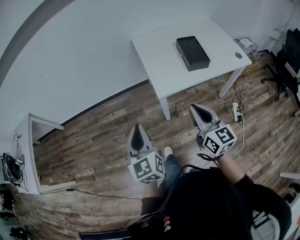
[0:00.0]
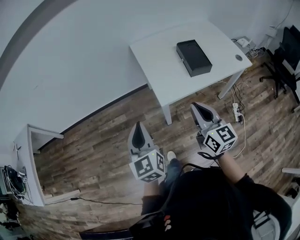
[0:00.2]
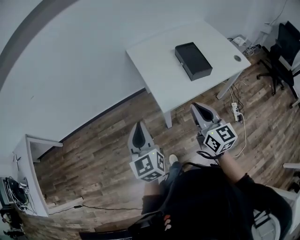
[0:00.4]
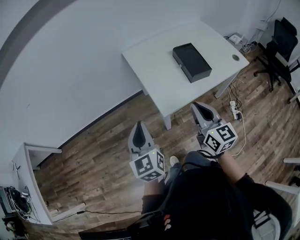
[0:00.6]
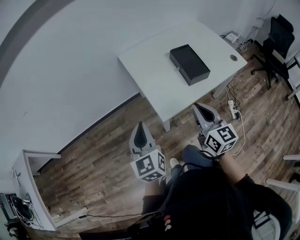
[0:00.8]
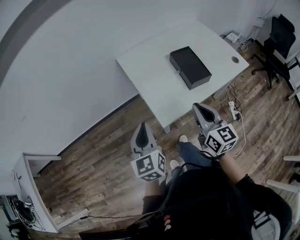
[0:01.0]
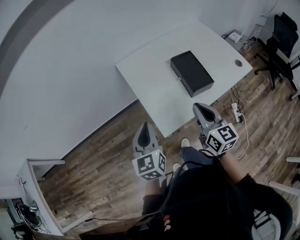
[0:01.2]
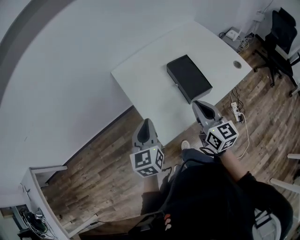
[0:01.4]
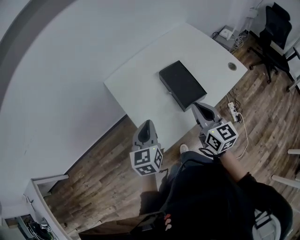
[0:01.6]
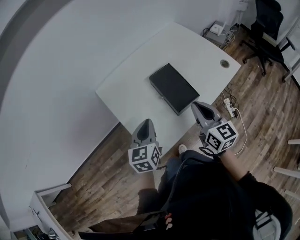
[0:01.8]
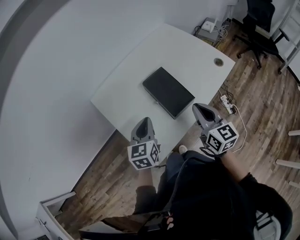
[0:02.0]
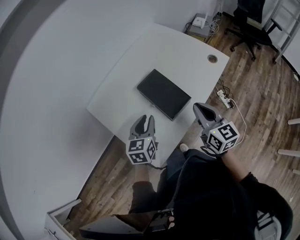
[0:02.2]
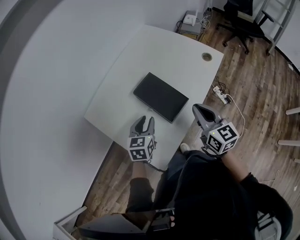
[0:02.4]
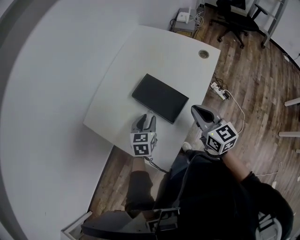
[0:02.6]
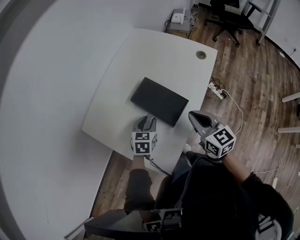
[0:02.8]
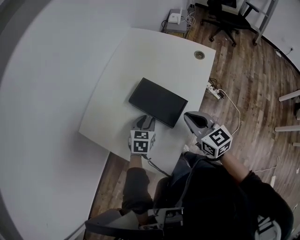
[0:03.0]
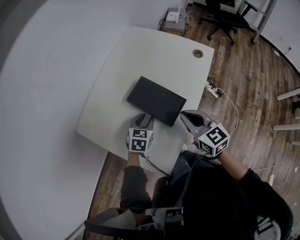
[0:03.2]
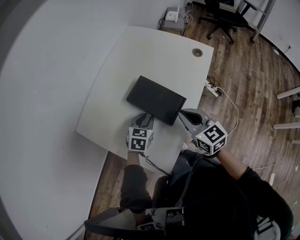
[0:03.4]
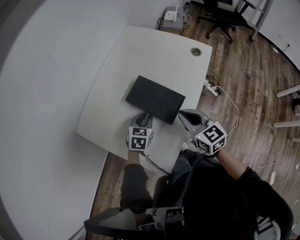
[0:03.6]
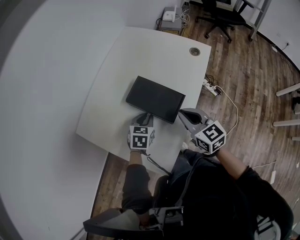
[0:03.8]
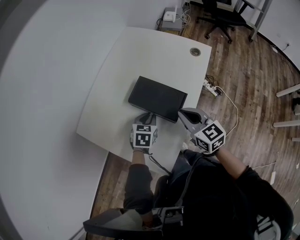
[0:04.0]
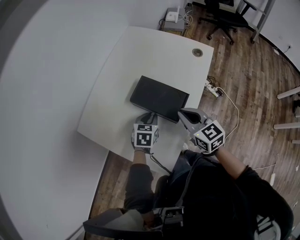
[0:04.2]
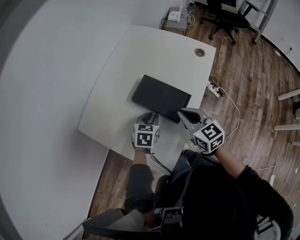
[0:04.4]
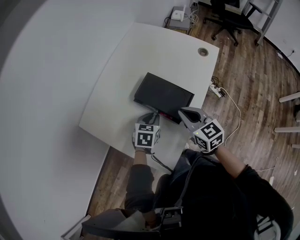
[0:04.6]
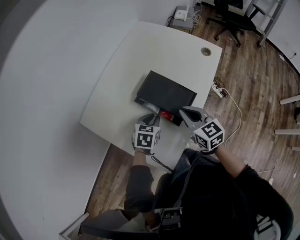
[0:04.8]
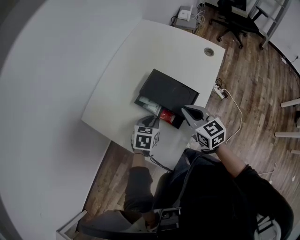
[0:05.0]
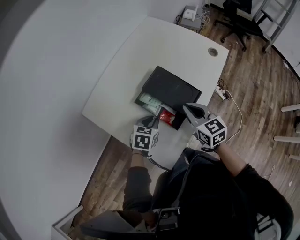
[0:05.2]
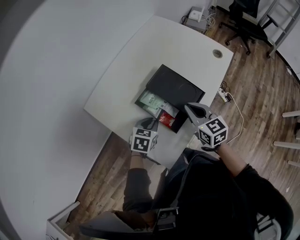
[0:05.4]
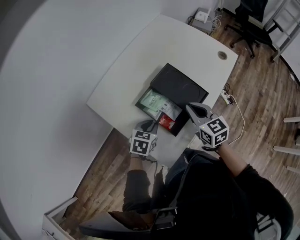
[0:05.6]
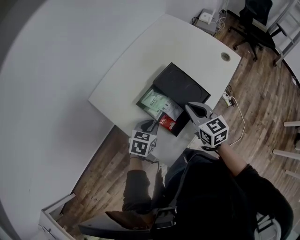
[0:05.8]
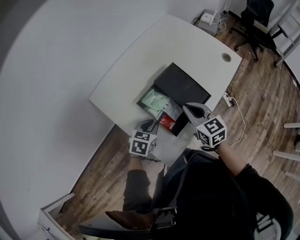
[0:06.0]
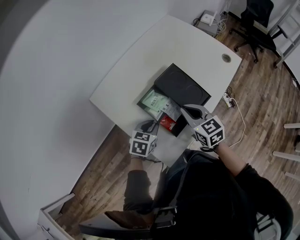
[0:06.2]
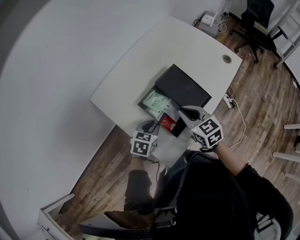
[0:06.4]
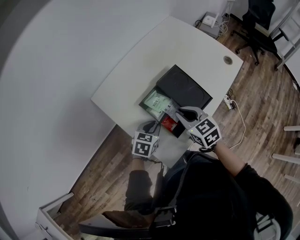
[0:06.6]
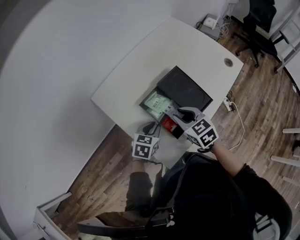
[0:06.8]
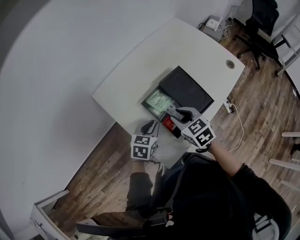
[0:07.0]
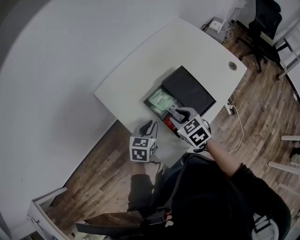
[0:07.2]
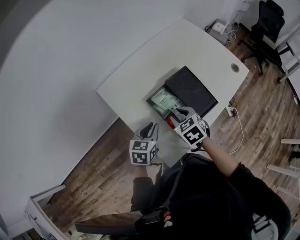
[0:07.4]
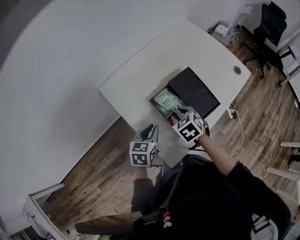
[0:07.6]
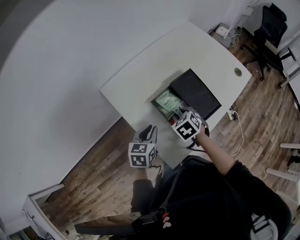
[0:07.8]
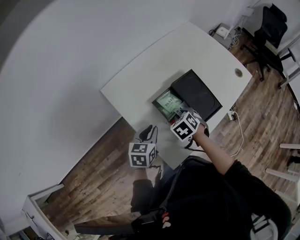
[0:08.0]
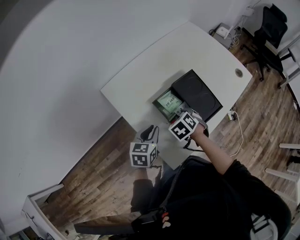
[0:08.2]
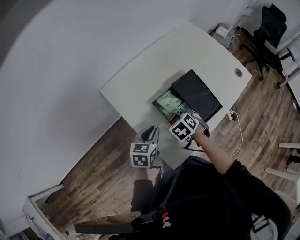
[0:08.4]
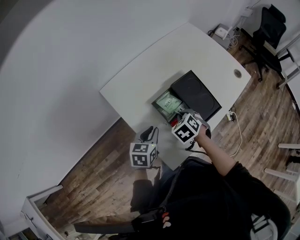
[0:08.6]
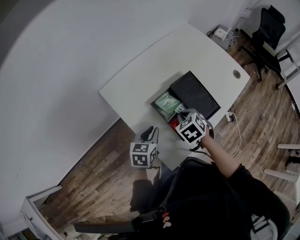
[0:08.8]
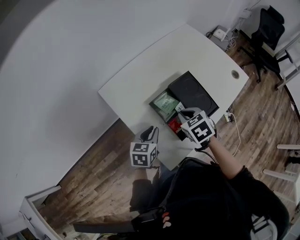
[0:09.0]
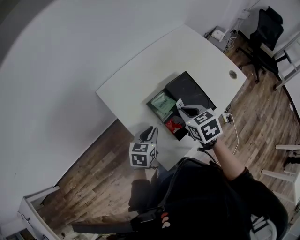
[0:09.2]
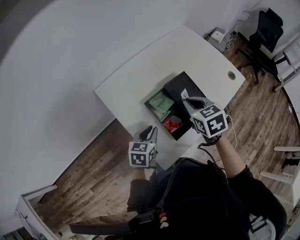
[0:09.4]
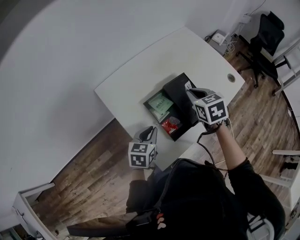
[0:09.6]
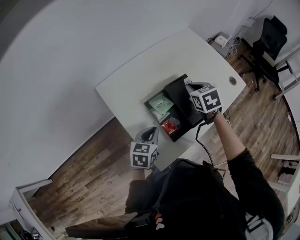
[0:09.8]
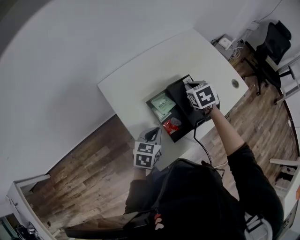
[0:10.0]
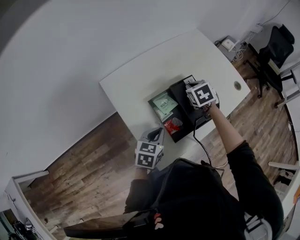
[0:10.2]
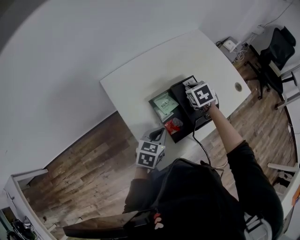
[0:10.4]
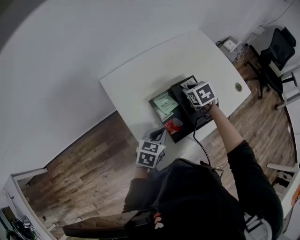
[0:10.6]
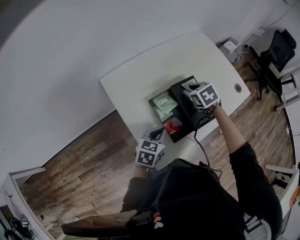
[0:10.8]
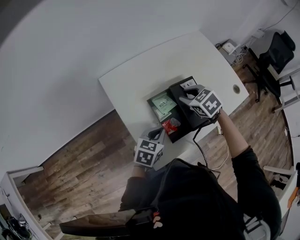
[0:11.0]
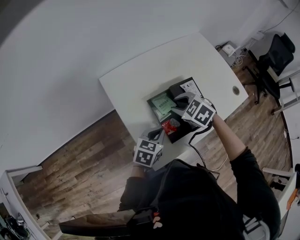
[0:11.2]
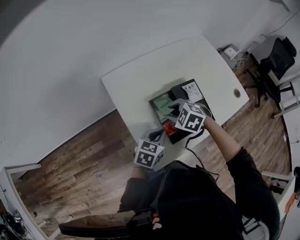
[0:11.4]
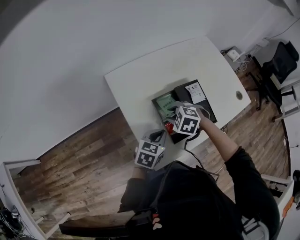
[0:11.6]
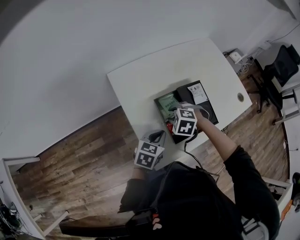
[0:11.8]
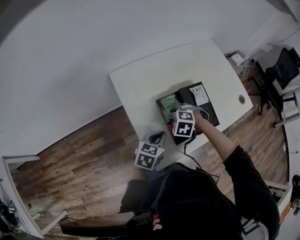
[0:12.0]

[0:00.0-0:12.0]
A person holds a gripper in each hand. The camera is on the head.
0:00.0 to 0:01.6: The right gripper ends up some 30 cm from where it was, while the left gripper changes place by roughly 40 cm, and rotates approximately 40 degrees.
0:01.6 to 0:03.0: The right gripper changes place by approximately 10 cm. Meanwhile the left gripper moves some 25 cm, changes its angle by roughly 50 degrees, and opens its fingers.
0:03.0 to 0:04.4: There are only small adjustments of the grippers.
0:04.4 to 0:06.0: The right gripper goes roughly 5 cm to the left. The left gripper moves backward and to the left, roughly 15 cm.
0:06.0 to 0:07.6: The left gripper travels to the left by about 5 cm, and turns by roughly 20 degrees, while the right gripper is displaced to the left and downward by roughly 10 cm, points its fingers roughly 30 degrees further downward, and opens up.
0:07.6 to 0:09.0: The right gripper ends up some 5 cm from where it was, and closes up.
0:09.0 to 0:10.4: The right gripper is displaced forward by roughly 15 cm. The left gripper heads to the right, covering roughly 5 cm.
0:10.4 to 0:12.0: The right gripper moves roughly 20 cm, twists about 60 degrees counterclockwise, seen from behind, and opens.

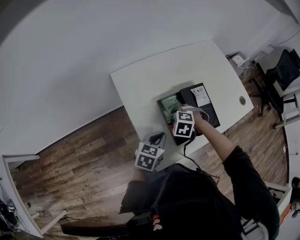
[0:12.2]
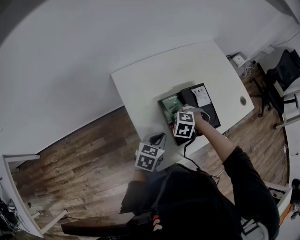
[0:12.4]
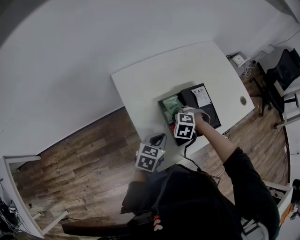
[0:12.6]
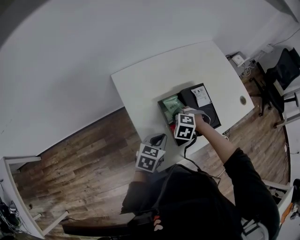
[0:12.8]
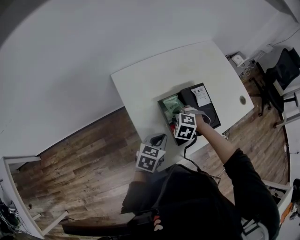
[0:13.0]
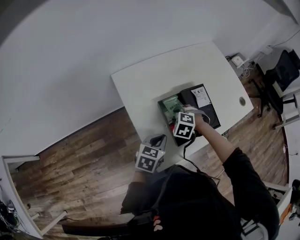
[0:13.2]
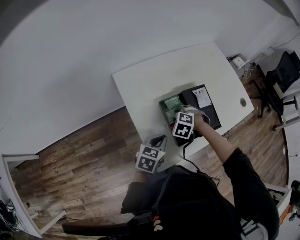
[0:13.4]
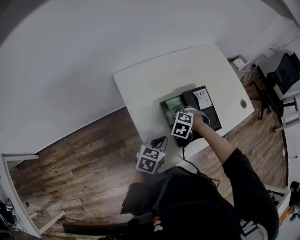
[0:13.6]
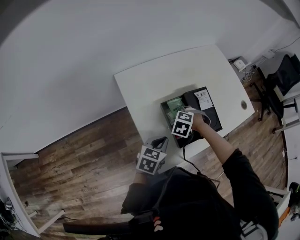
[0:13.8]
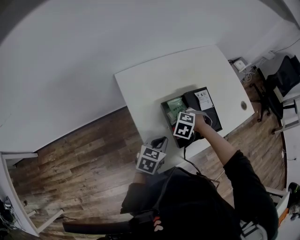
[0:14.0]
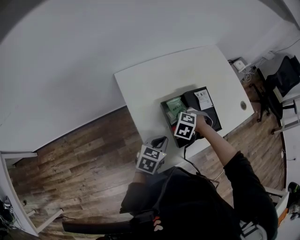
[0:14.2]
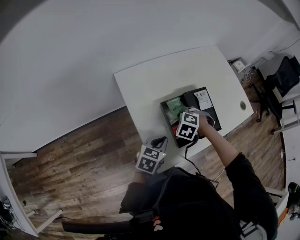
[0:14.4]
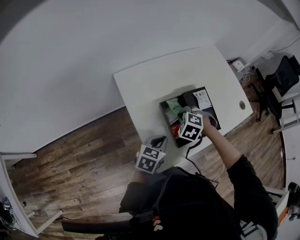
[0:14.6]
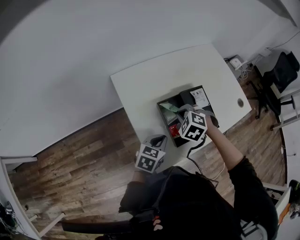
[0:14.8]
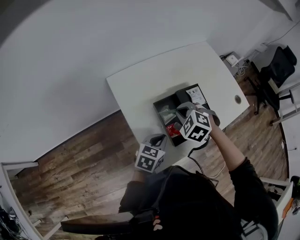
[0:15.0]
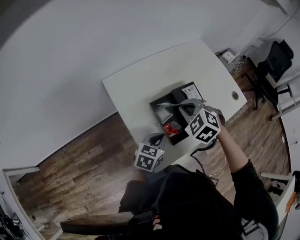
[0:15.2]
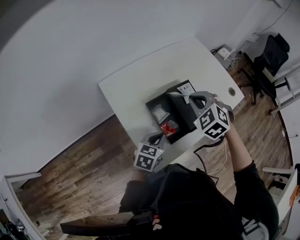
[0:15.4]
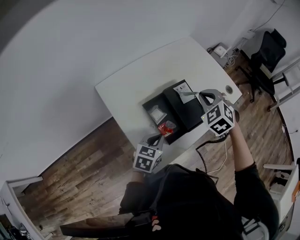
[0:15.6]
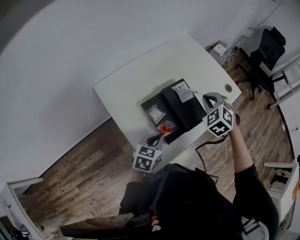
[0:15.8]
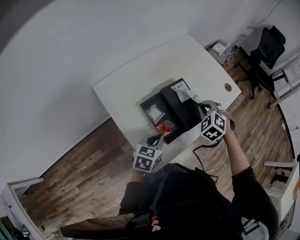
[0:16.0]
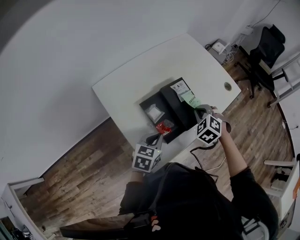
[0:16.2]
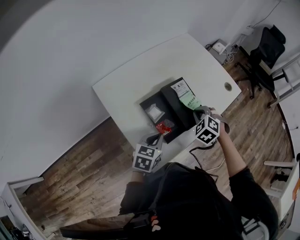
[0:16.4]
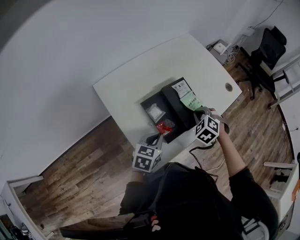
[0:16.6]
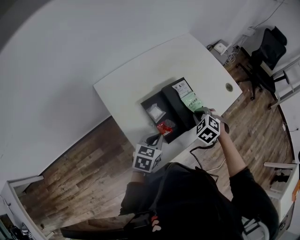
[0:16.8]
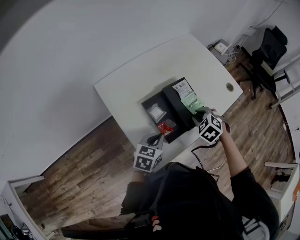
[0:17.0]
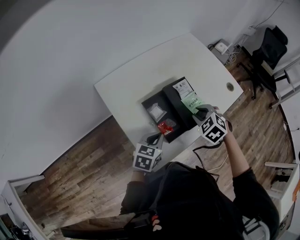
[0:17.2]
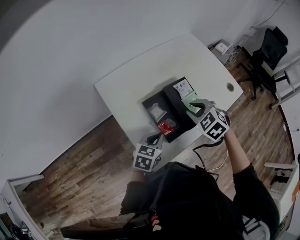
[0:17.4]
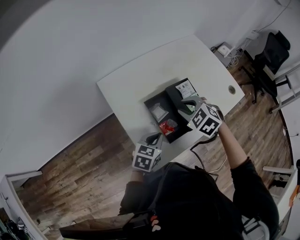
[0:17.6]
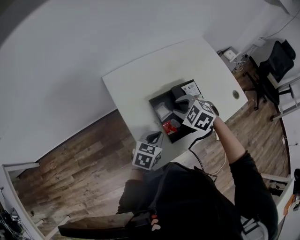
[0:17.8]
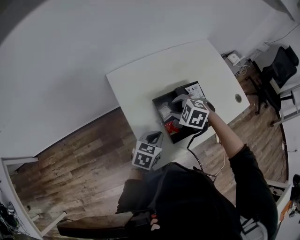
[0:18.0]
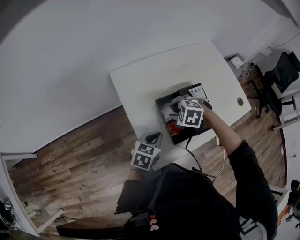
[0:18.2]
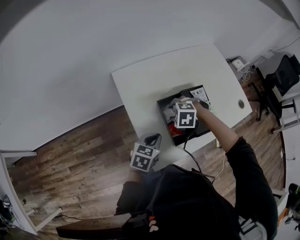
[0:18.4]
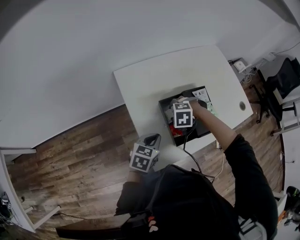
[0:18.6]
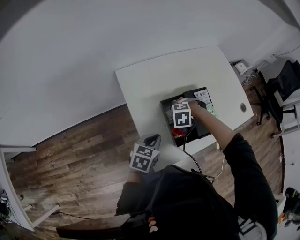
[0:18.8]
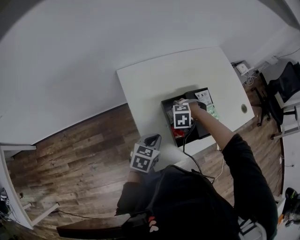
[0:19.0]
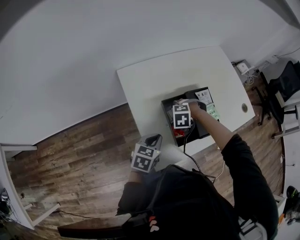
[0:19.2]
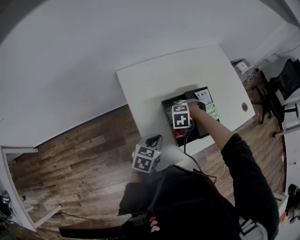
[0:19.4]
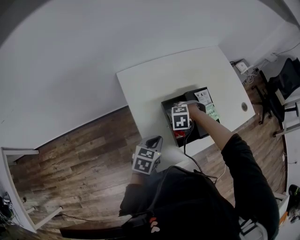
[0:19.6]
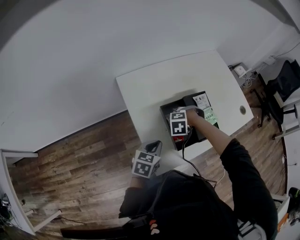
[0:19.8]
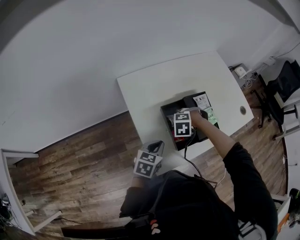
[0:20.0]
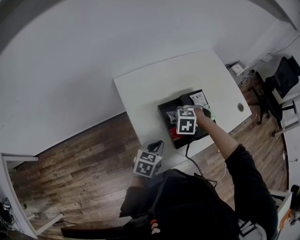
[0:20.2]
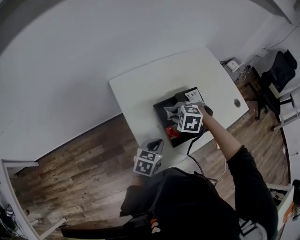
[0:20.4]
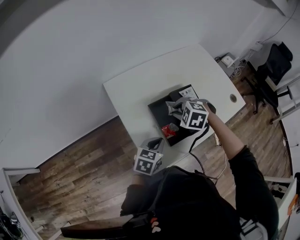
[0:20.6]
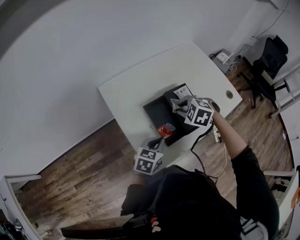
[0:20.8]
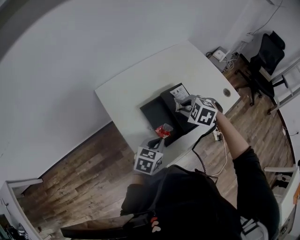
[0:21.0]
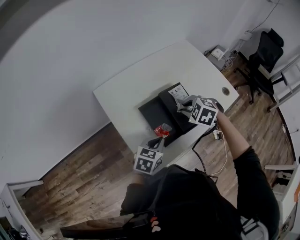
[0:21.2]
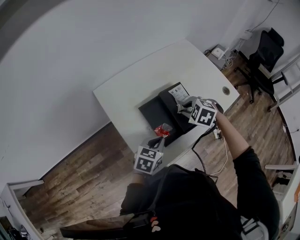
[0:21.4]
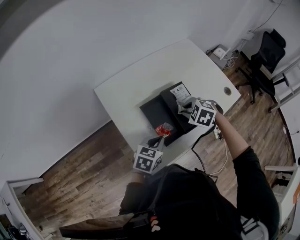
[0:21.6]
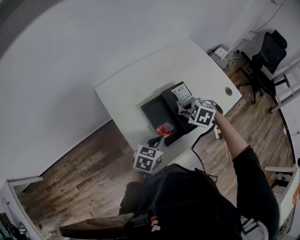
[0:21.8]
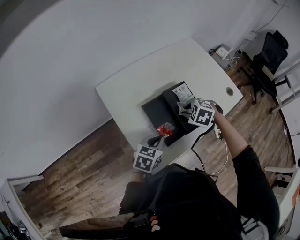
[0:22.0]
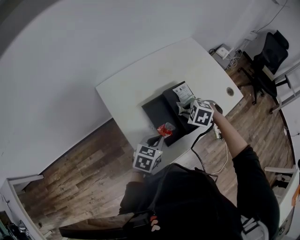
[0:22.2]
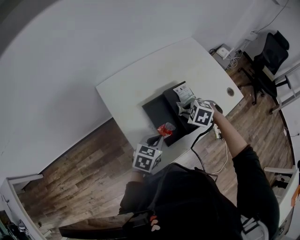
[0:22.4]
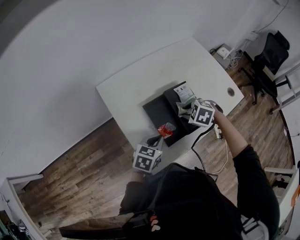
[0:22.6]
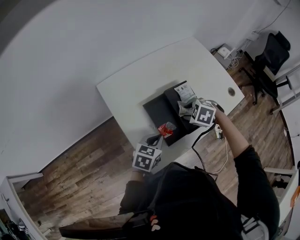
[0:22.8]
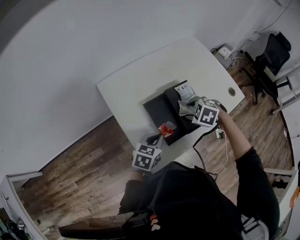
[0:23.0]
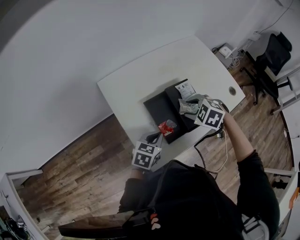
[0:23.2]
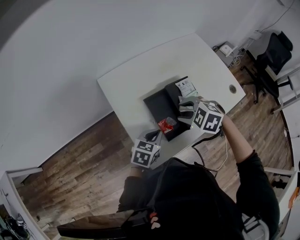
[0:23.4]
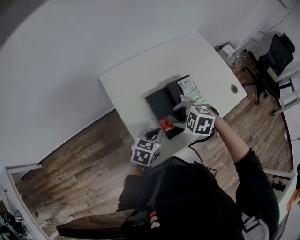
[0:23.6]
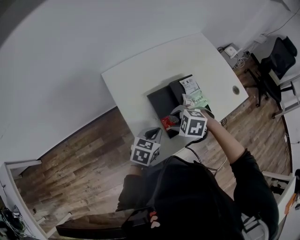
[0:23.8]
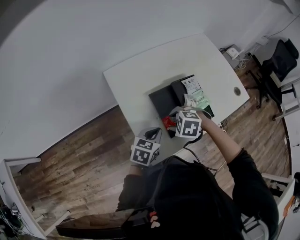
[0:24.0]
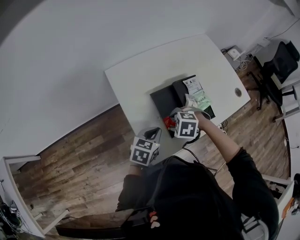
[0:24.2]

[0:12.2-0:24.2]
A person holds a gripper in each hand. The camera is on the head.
0:12.2 to 0:13.8: The grippers make only small movements.
0:13.8 to 0:15.2: The right gripper travels upward by some 15 cm, rotates roughly 30 degrees, and closes its fingers.
0:15.2 to 0:16.6: The right gripper moves to the right and downward, roughly 15 cm, and changes its angle by approximately 20 degrees.
0:16.6 to 0:18.2: The right gripper shifts by about 20 cm, turns by about 40 degrees, and opens its fingers.
0:18.2 to 0:19.8: The right gripper shifts roughly 5 cm downward, and swivels roughly 20 degrees.
0:19.8 to 0:21.2: The right gripper moves some 20 cm, and turns by about 40 degrees. Meanwhile the left gripper ends up approximately 10 cm from where it was.
0:21.2 to 0:22.6: The right gripper is displaced downward by roughly 5 cm.
0:22.6 to 0:24.2: The right gripper goes upward and returns, approximately 5 cm each way.
